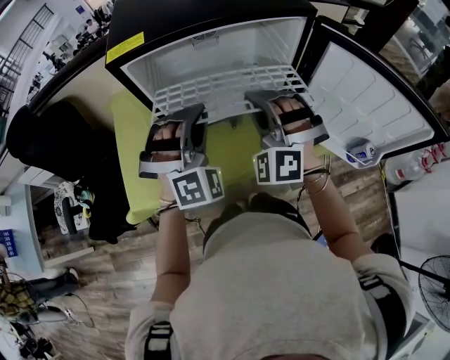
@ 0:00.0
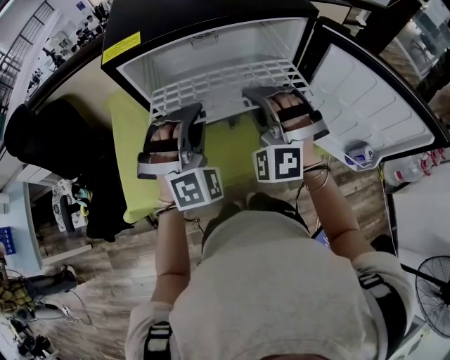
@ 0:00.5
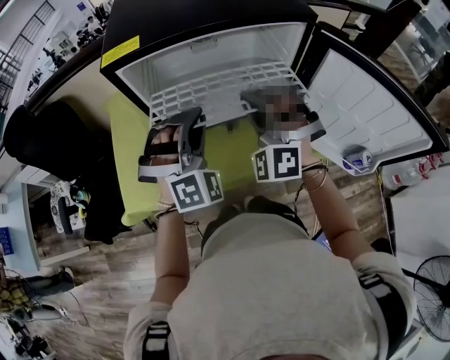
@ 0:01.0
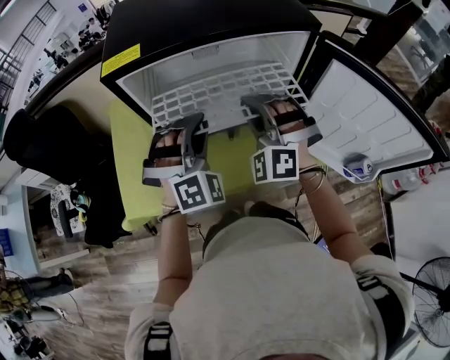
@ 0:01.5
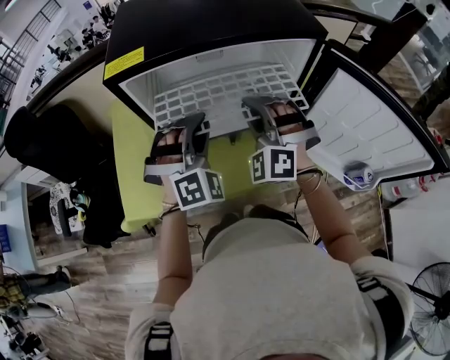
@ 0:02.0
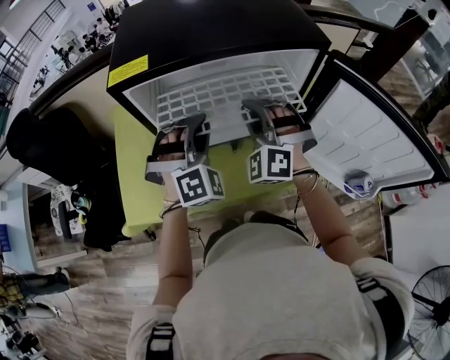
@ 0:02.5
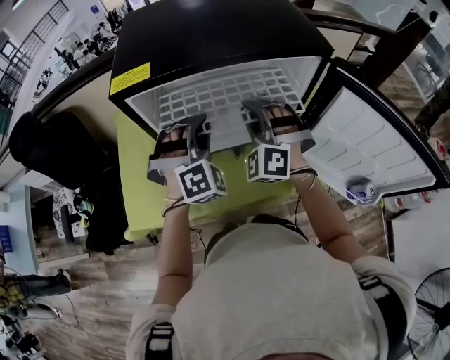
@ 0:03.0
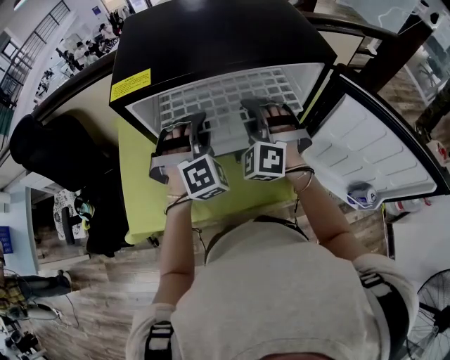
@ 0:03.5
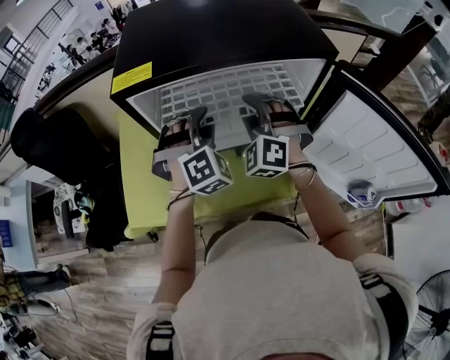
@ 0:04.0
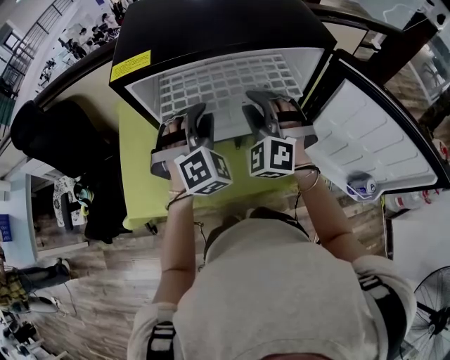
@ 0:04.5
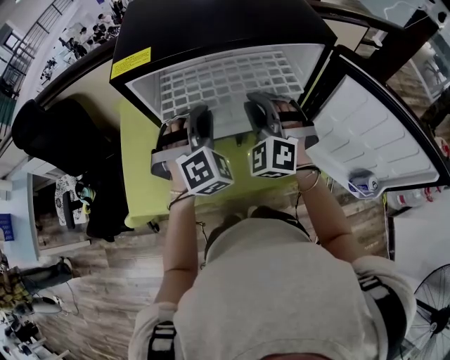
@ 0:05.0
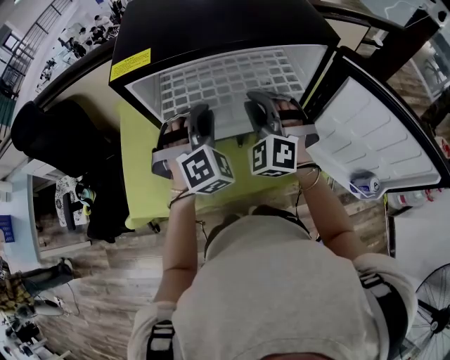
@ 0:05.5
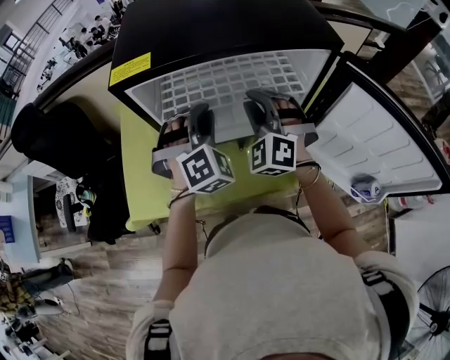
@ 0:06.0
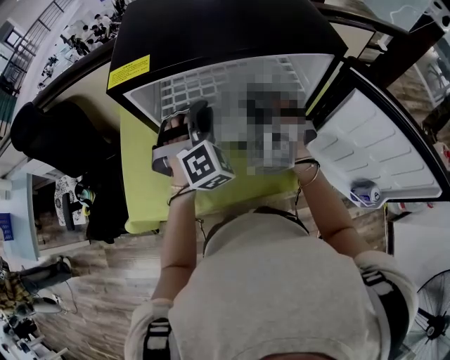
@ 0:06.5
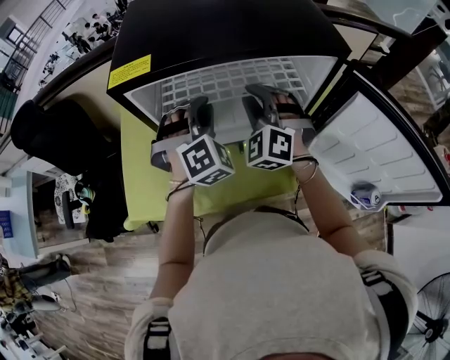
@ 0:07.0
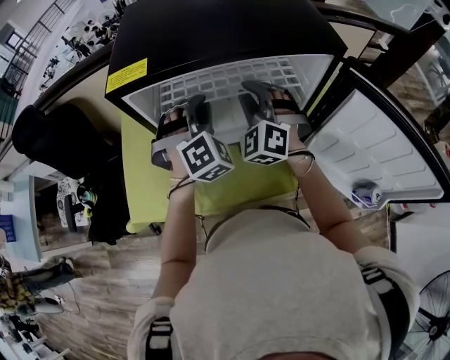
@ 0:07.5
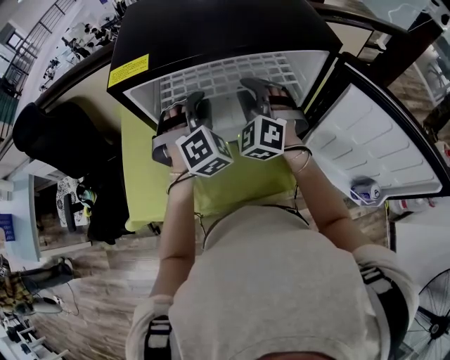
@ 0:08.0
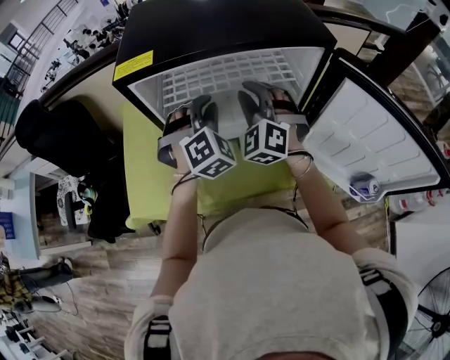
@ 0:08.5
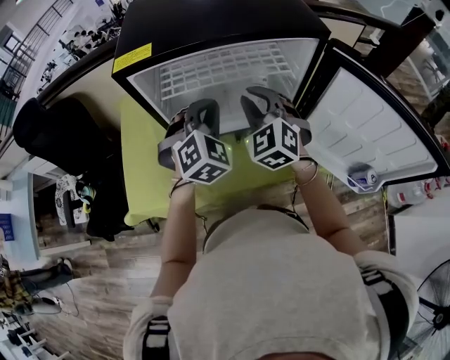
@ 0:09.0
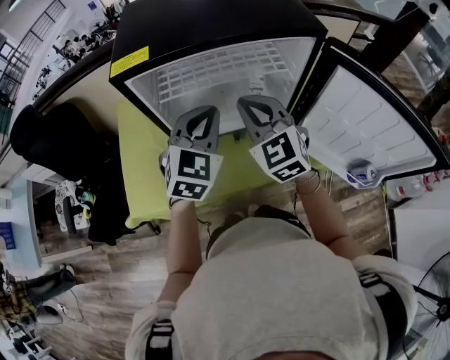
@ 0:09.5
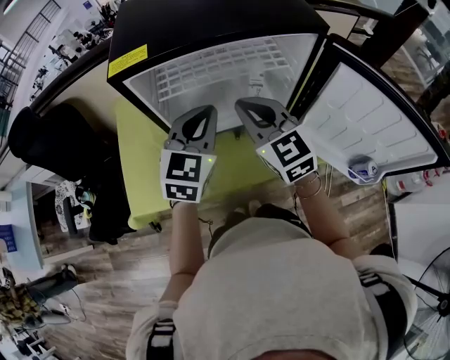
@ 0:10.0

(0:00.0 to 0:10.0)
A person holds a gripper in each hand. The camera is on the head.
0:00.0 - 0:02.0: The right gripper goes some 5 cm forward, while the left gripper shifts by approximately 5 cm.
0:02.0 - 0:04.0: The two grippers go about 5 cm forward.
0:04.0 - 0:08.0: The grippers move only a little.
0:08.0 - 0:10.0: The right gripper goes some 10 cm backward, and rotates around the line of its fingers by some 50 degrees, clockwise from behind. The left gripper goes roughly 10 cm backward and upward, and rolls counterclockwise, seen from behind, by roughly 40 degrees.

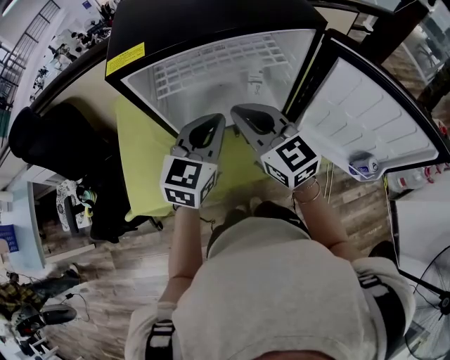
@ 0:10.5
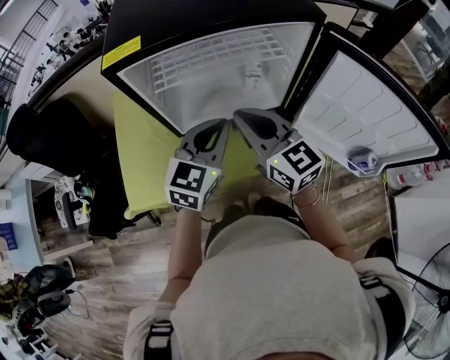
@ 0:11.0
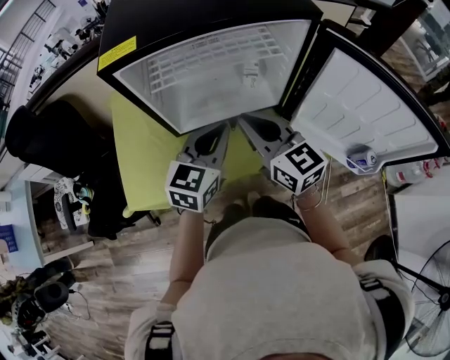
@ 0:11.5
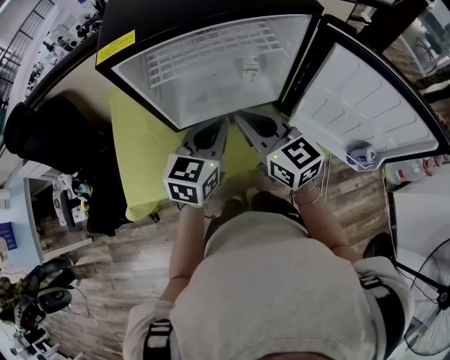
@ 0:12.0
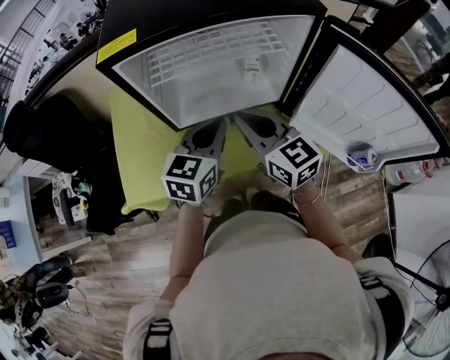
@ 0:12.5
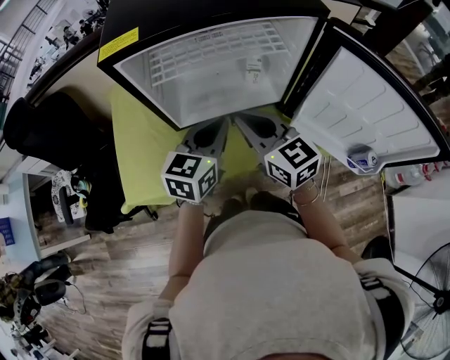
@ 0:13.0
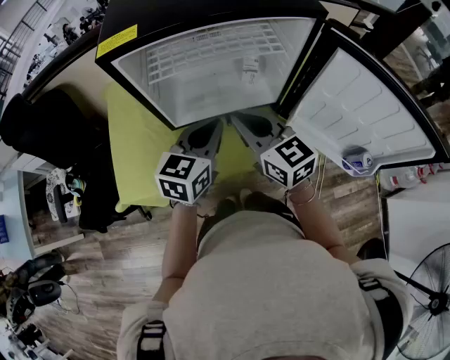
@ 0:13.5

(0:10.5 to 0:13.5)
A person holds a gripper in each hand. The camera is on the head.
0:10.5 - 0:12.0: The left gripper shifts by some 5 cm.
0:12.0 - 0:13.5: The grippers make only small movements.

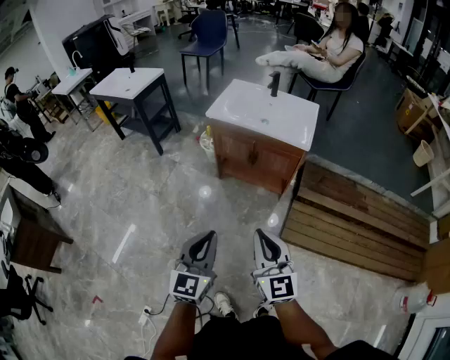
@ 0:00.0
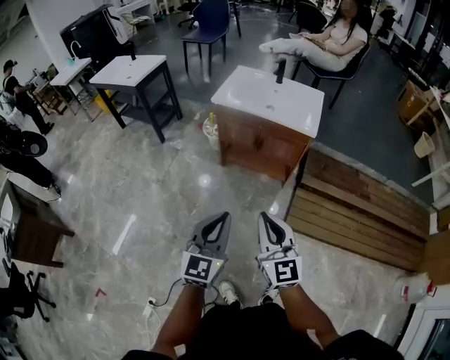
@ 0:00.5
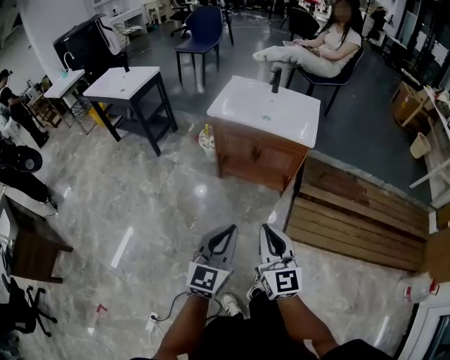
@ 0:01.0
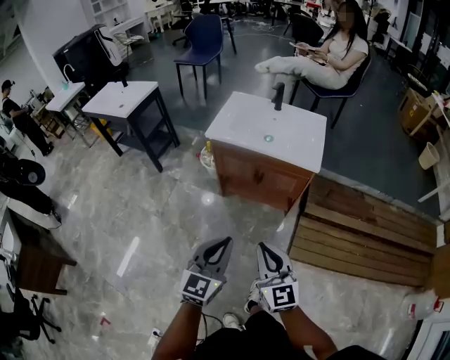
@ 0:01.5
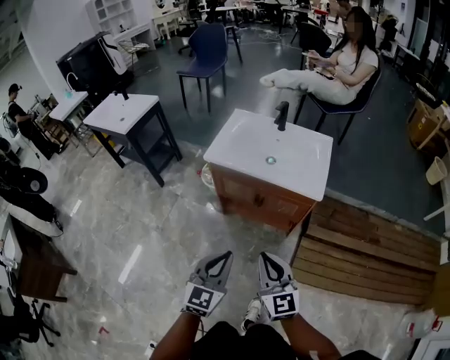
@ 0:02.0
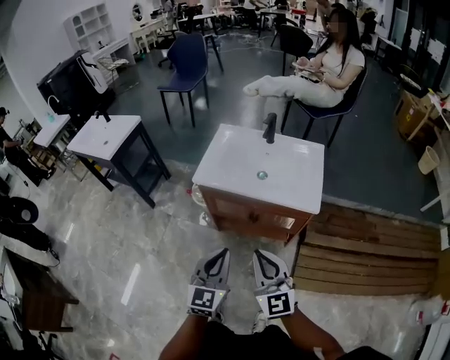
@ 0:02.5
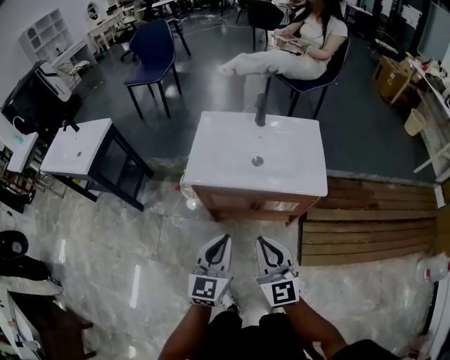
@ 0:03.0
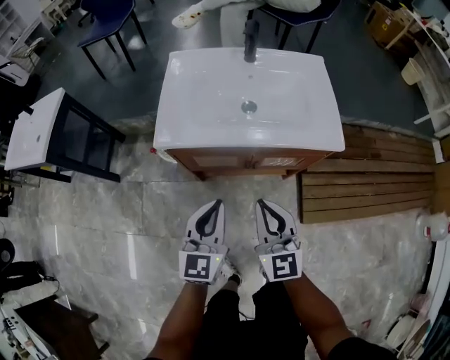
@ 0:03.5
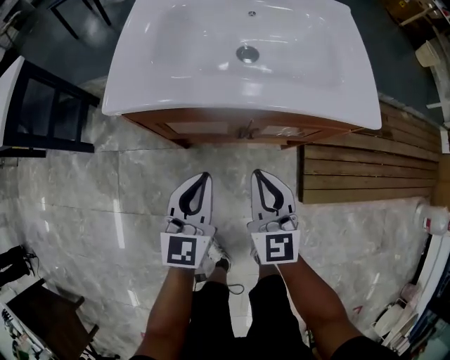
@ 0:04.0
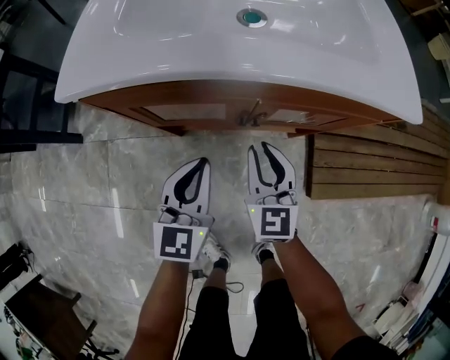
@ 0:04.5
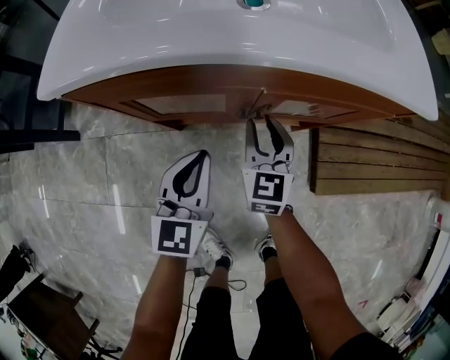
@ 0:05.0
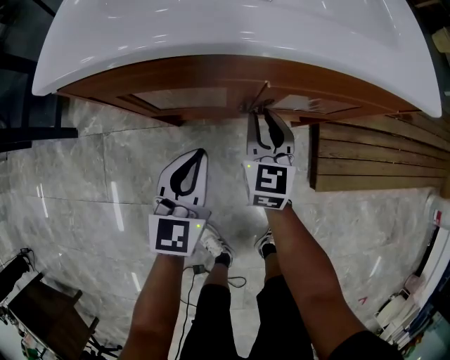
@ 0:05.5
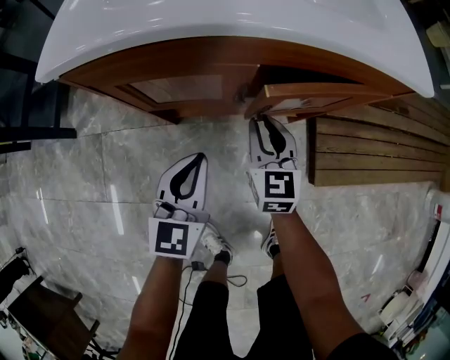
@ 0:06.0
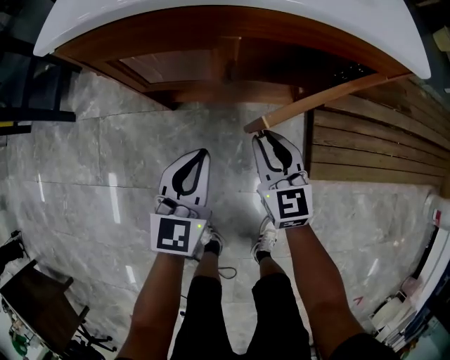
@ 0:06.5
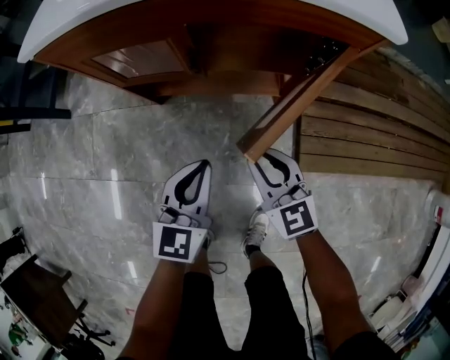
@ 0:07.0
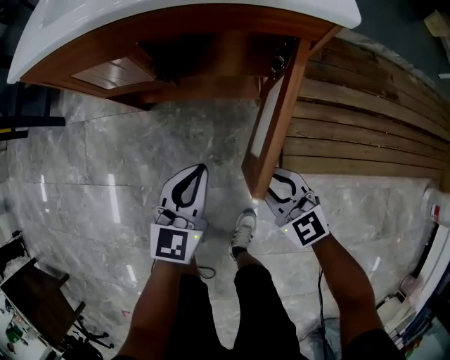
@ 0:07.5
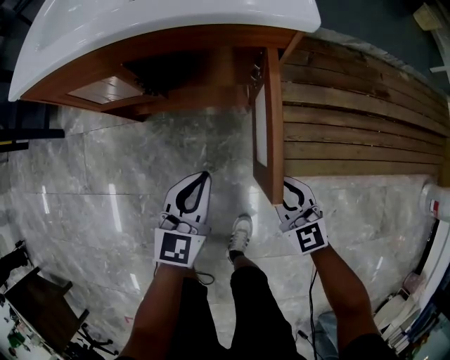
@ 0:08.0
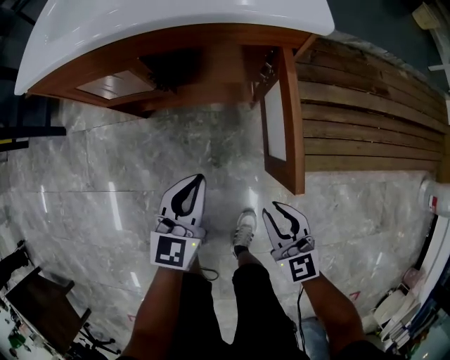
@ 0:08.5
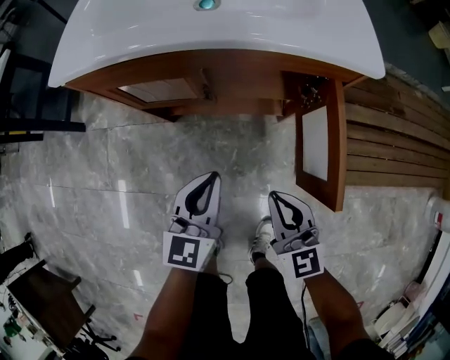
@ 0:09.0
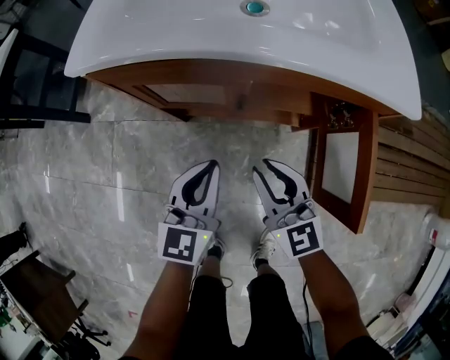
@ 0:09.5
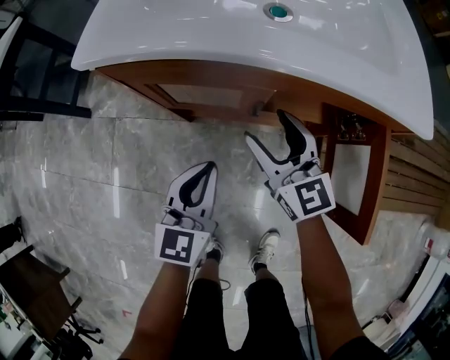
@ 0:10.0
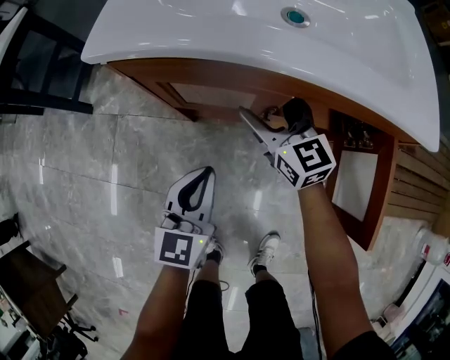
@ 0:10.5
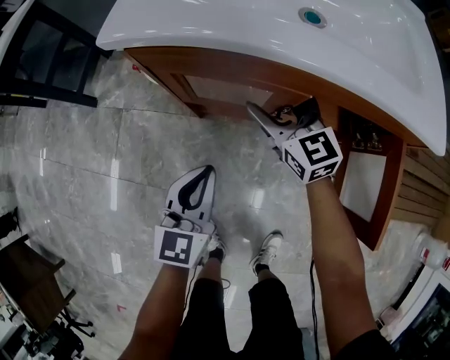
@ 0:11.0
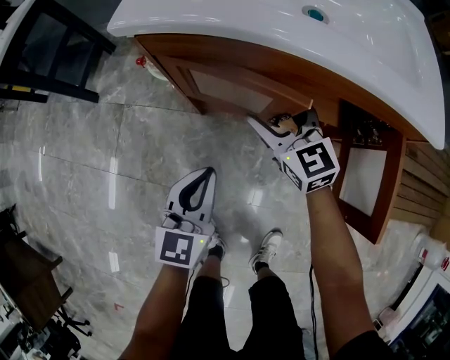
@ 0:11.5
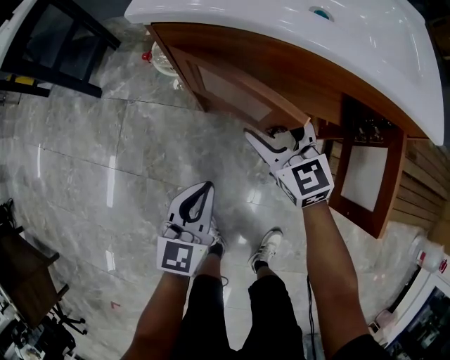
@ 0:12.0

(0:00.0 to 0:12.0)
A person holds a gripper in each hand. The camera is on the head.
0:00.0 - 0:02.0: Both grippers travel together forward, about 25 cm.
0:02.0 - 0:04.0: The left gripper goes some 40 cm forward and downward, while the right gripper moves downward and forward, approximately 40 cm, and swivels about 30 degrees.
0:04.0 - 0:06.0: The grippers both shift downward by approximately 15 cm.
0:06.0 - 0:08.0: The grippers both shift to the right and backward by approximately 30 cm. The right gripper swivels approximately 20 degrees.
0:08.0 - 0:10.0: The grippers both shift to the left and forward by roughly 30 cm. The right gripper opens up.
0:10.0 - 0:12.0: The right gripper moves to the left, roughly 10 cm, and goes forward and returns, approximately 10 cm each way; the left gripper heads to the left and backward, covering approximately 10 cm.

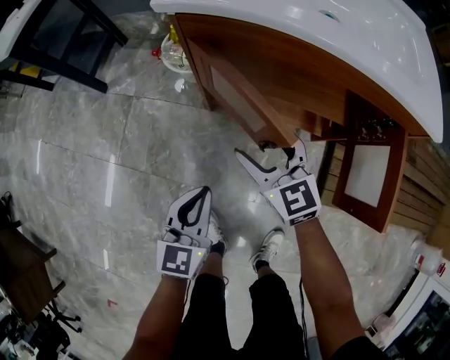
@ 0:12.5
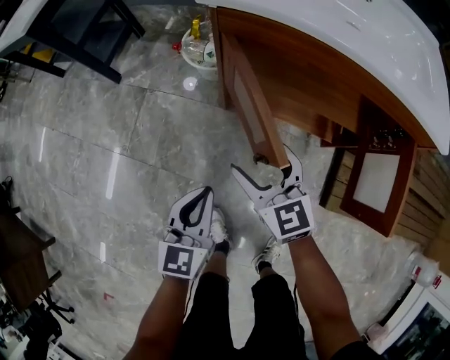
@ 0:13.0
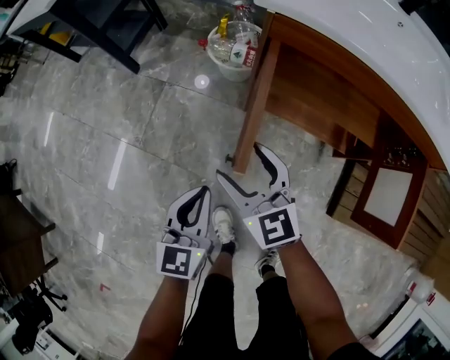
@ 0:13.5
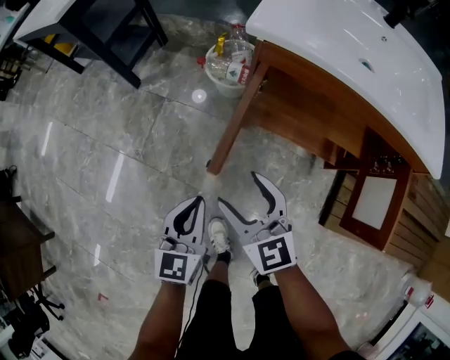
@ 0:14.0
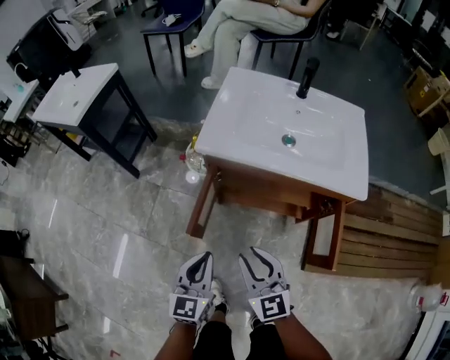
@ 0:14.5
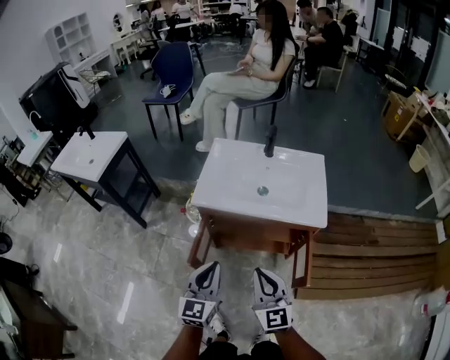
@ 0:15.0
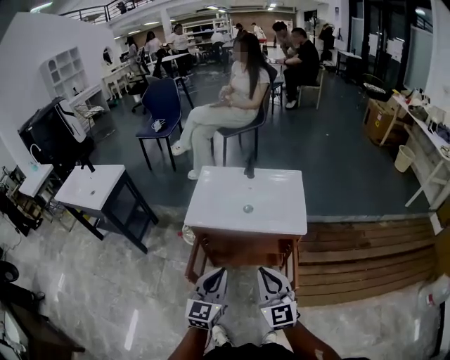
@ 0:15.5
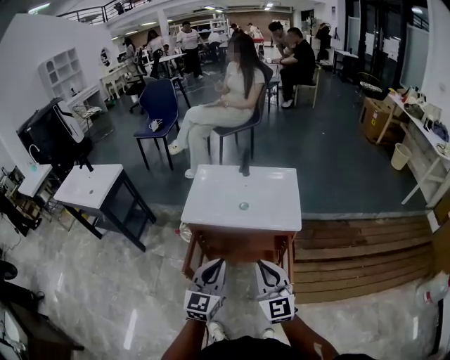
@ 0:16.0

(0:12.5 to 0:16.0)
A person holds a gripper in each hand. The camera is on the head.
0:12.5 - 0:14.5: The left gripper is displaced upward by about 20 cm; the right gripper is displaced upward and backward by roughly 25 cm, and closes its fingers.
0:14.5 - 0:16.0: The grippers both shift upward and to the right by some 30 cm. The right gripper changes its angle by approximately 20 degrees, while the left gripper turns by some 20 degrees.
